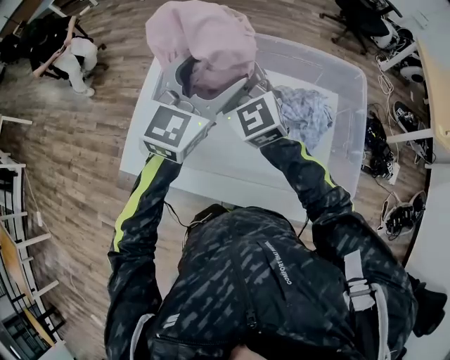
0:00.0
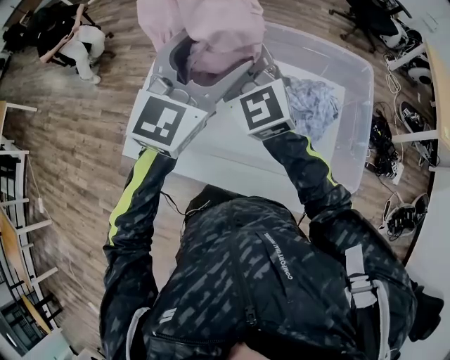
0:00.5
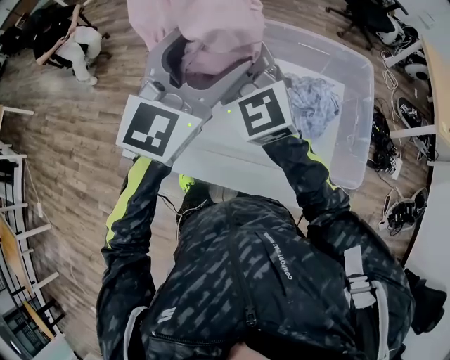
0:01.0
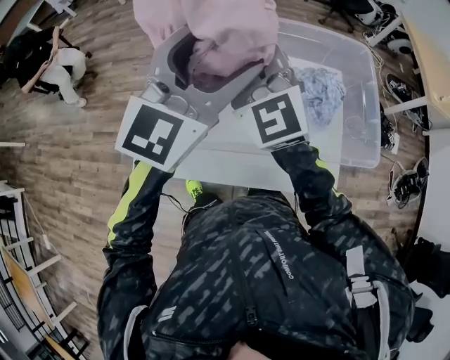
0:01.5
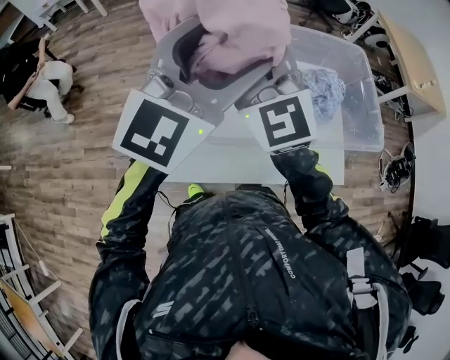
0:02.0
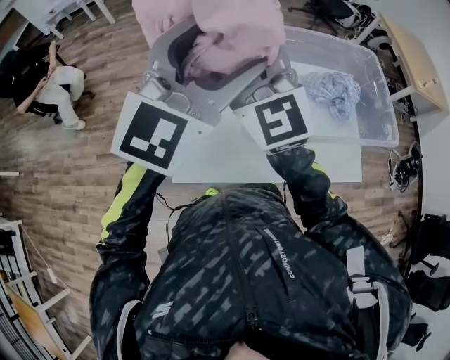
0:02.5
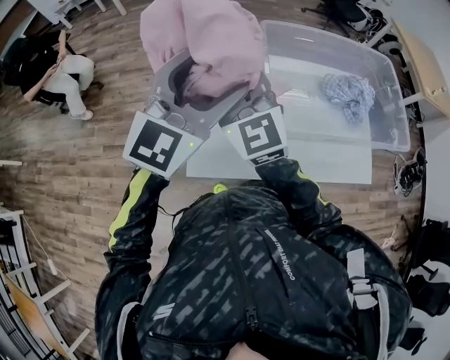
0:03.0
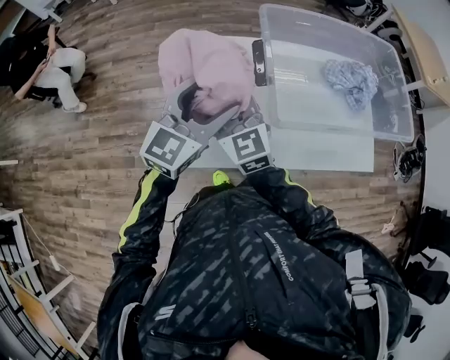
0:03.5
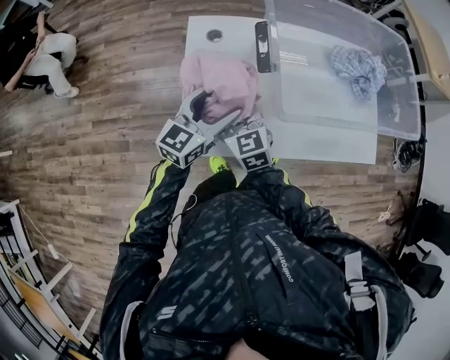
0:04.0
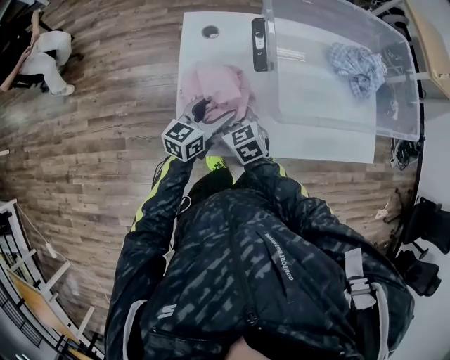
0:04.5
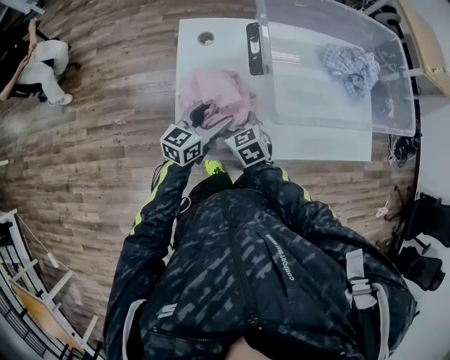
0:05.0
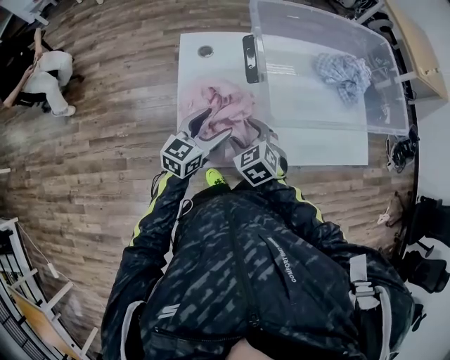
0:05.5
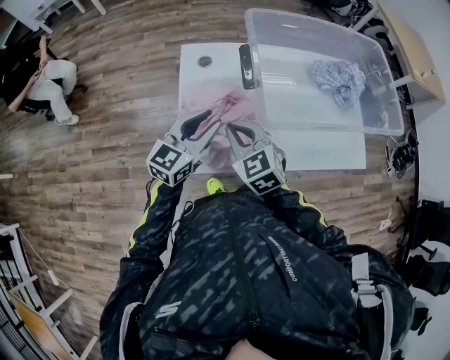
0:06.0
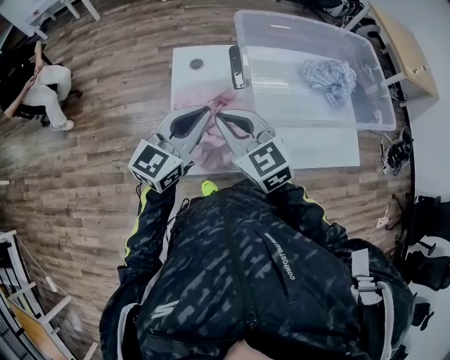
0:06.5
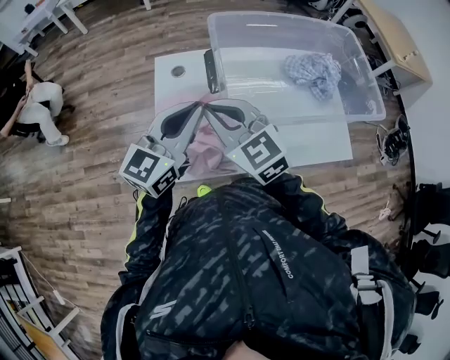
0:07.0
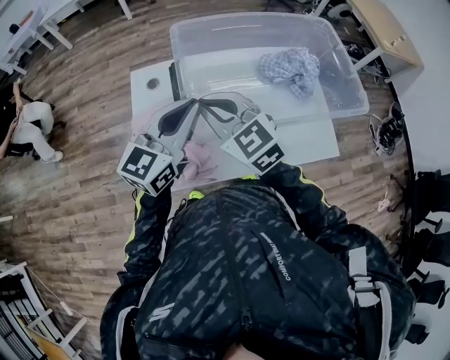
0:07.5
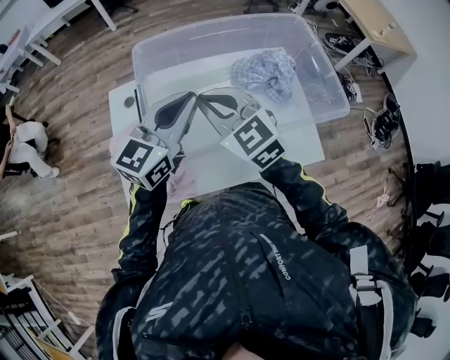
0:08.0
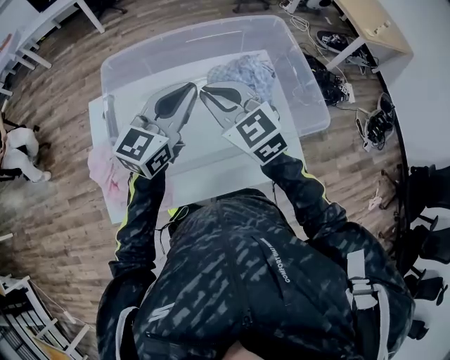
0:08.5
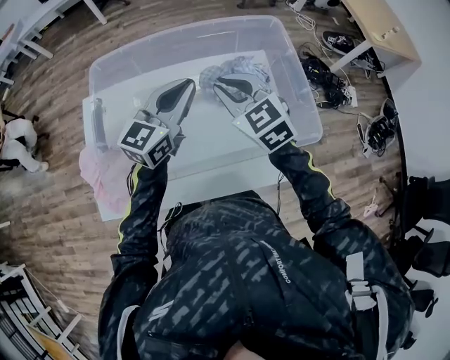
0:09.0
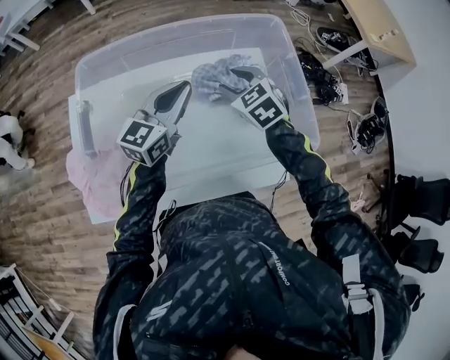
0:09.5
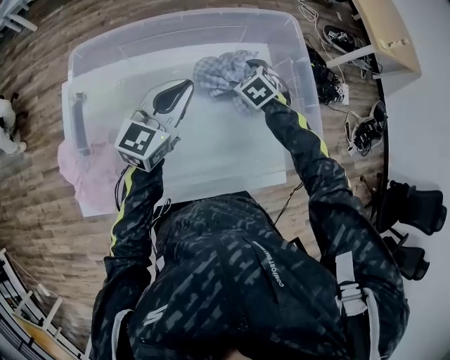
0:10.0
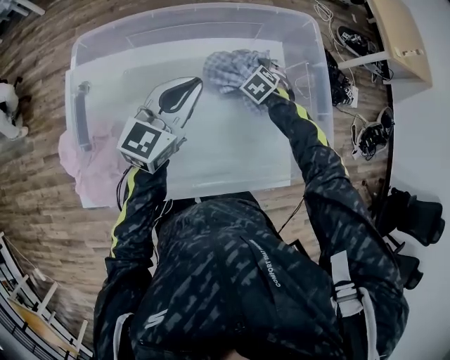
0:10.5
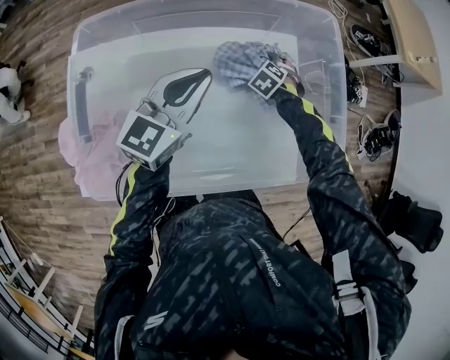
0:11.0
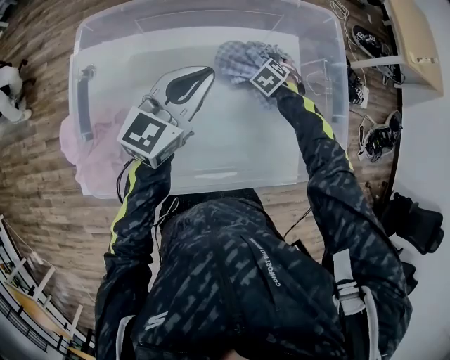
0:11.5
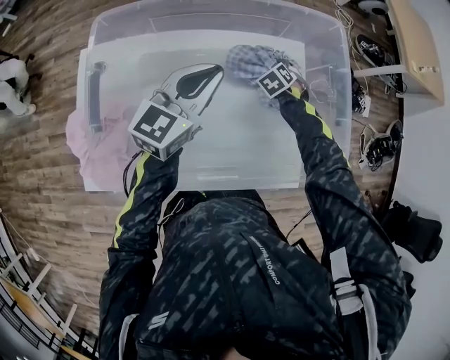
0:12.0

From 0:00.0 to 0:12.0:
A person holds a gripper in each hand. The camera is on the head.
From 0:00.0 to 0:02.0: The grippers both shift to the left, upward and backward by about 20 cm. The left gripper rotates about 20 degrees.
From 0:02.0 to 0:04.0: The grippers both shift downward and to the left by roughly 35 cm. The left gripper turns by some 30 degrees; the right gripper turns by about 40 degrees.
From 0:04.0 to 0:06.0: The left gripper moves roughly 10 cm downward and comes back, and closes up. Meanwhile the right gripper travels upward by about 5 cm.
From 0:06.0 to 0:08.0: The right gripper goes roughly 30 cm to the right, upward and forward; the left gripper shifts roughly 30 cm to the right and upward.
From 0:08.0 to 0:10.0: The left gripper moves forward, to the right and downward, some 25 cm. The right gripper moves downward, to the right and forward, some 40 cm, angles its fingers downward, by roughly 40 degrees, and opens.
From 0:10.0 to 0:12.0: The right gripper shifts roughly 10 cm downward, and opens, then closes again.

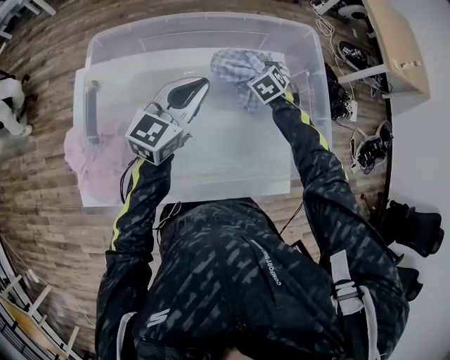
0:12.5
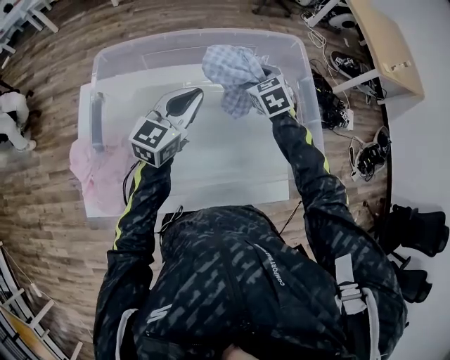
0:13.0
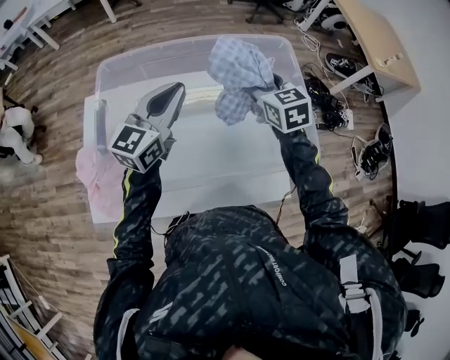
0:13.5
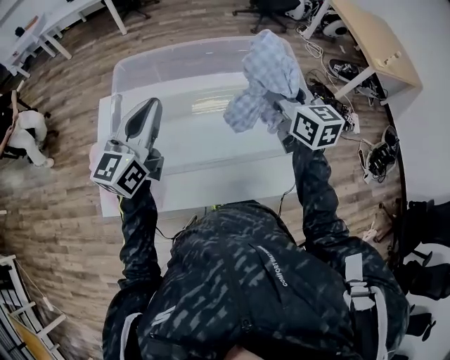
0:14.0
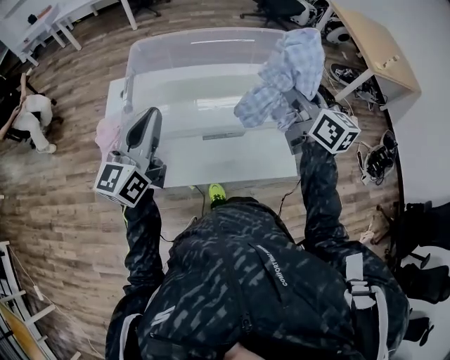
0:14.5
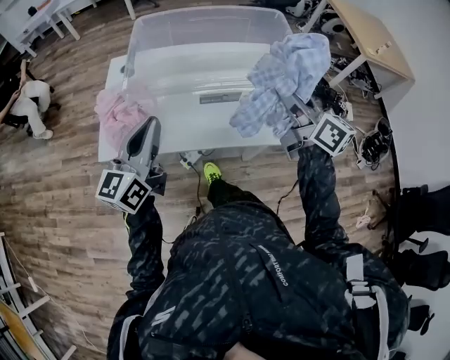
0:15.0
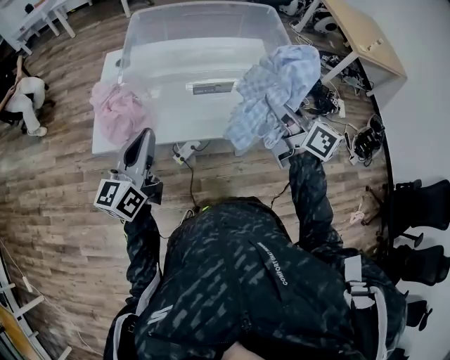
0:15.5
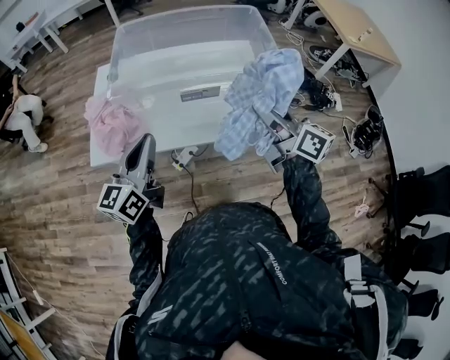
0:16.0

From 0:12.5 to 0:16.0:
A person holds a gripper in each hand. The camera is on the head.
From 0:12.5 to 0:14.5: The left gripper travels backward and upward by some 30 cm, and turns by about 20 degrees. Meanwhile the right gripper shifts some 40 cm upward and backward, and points its fingers roughly 60 degrees further upward.
From 0:14.5 to 0:16.0: Both grippers travel together backward, some 20 cm.

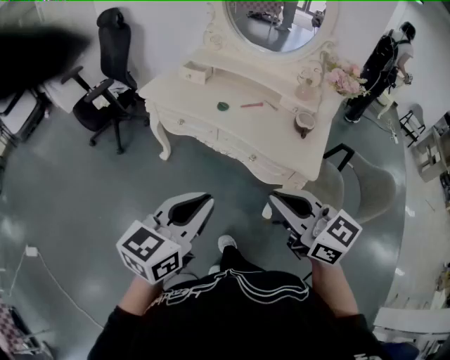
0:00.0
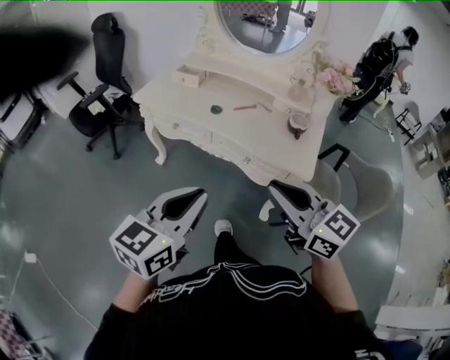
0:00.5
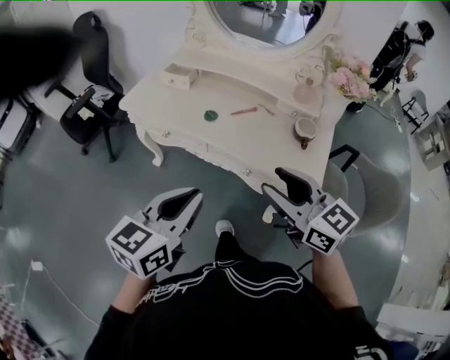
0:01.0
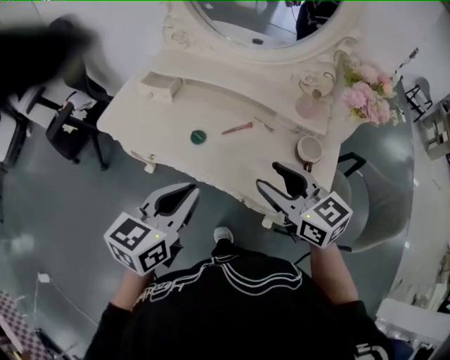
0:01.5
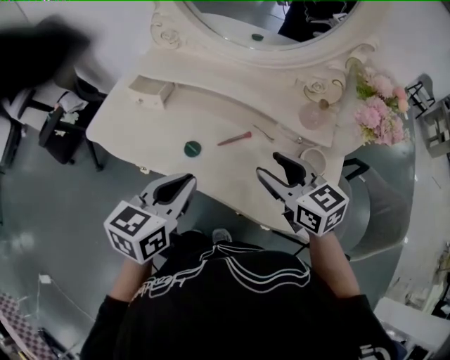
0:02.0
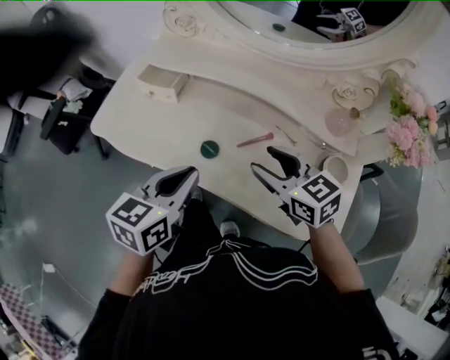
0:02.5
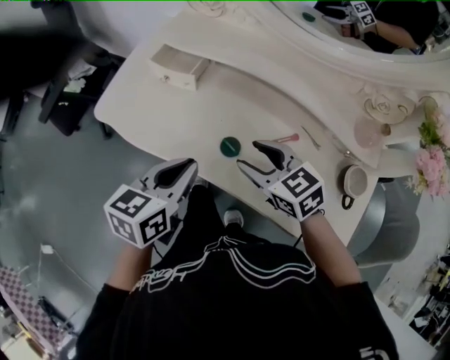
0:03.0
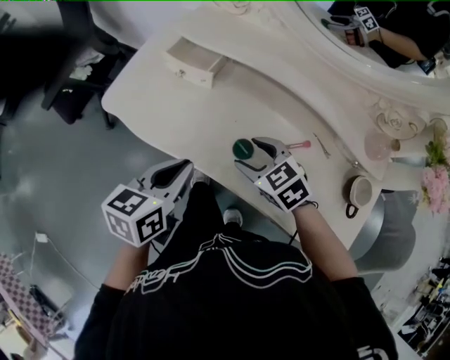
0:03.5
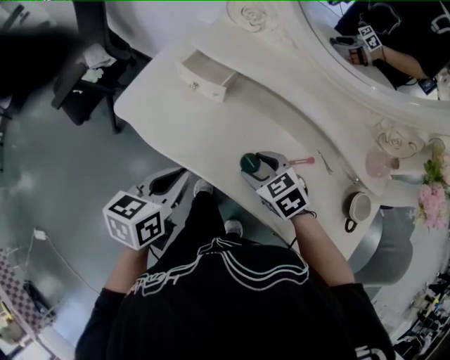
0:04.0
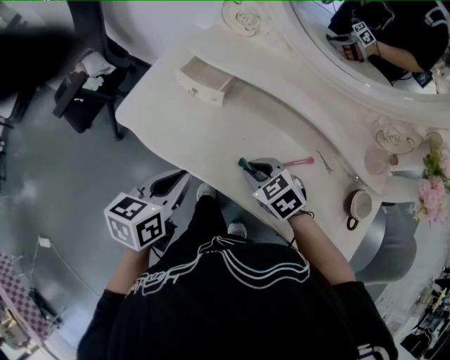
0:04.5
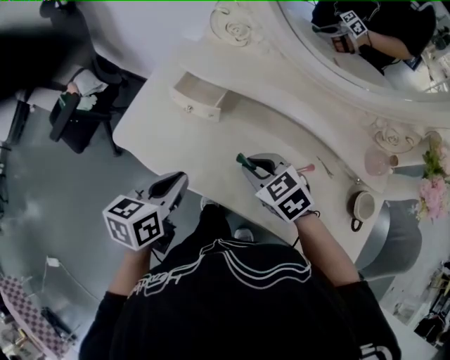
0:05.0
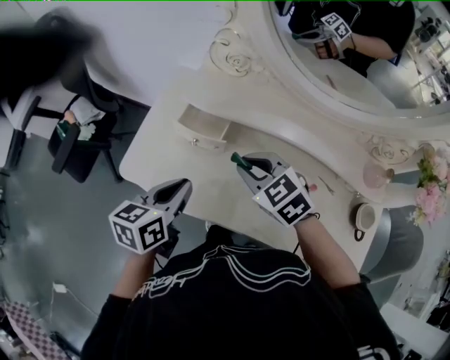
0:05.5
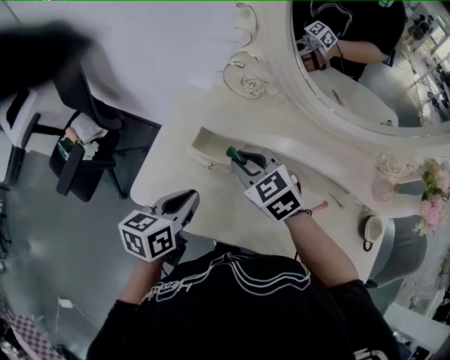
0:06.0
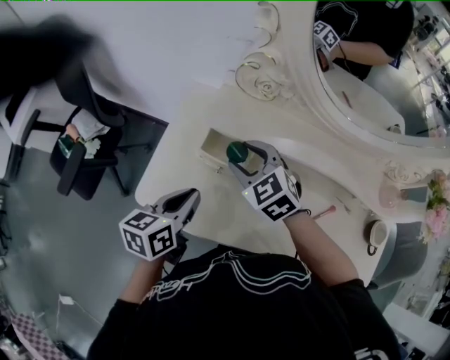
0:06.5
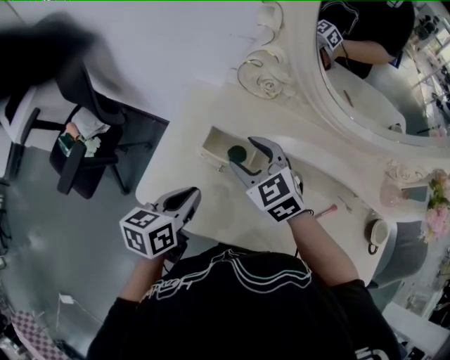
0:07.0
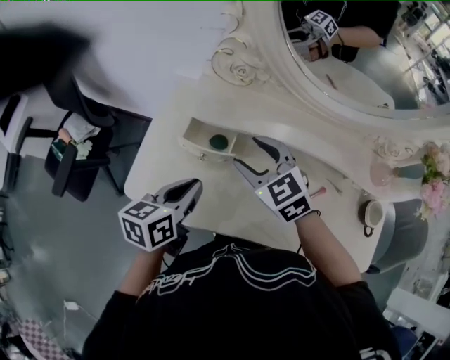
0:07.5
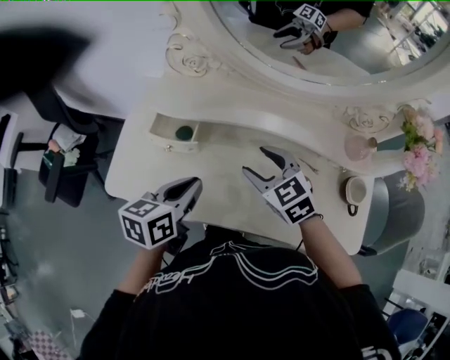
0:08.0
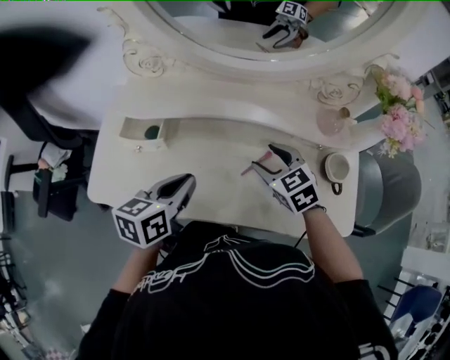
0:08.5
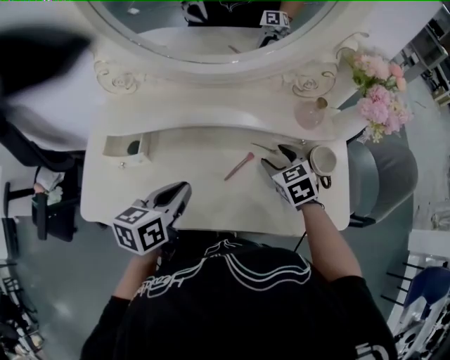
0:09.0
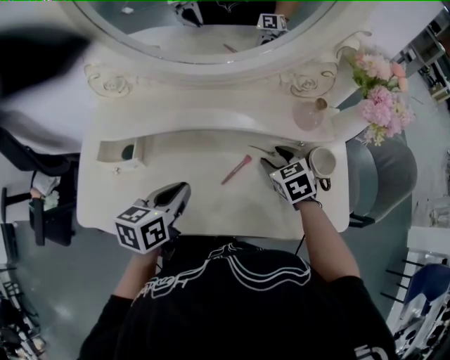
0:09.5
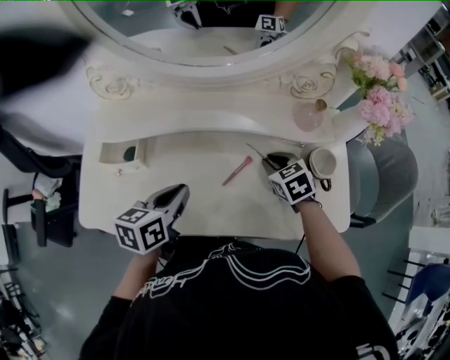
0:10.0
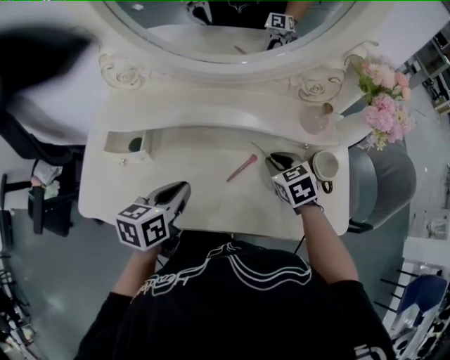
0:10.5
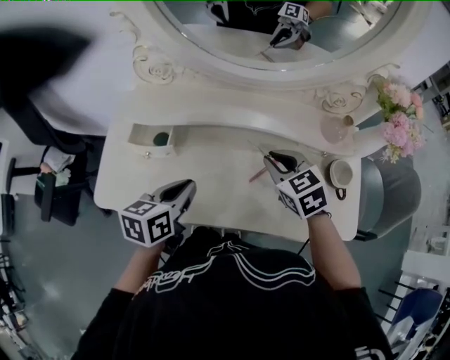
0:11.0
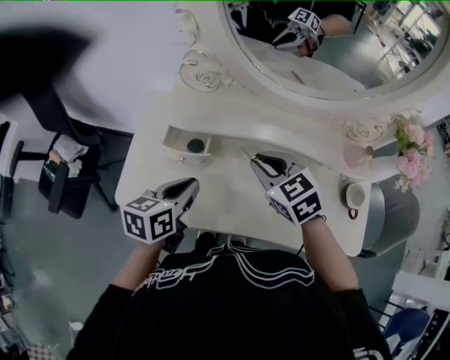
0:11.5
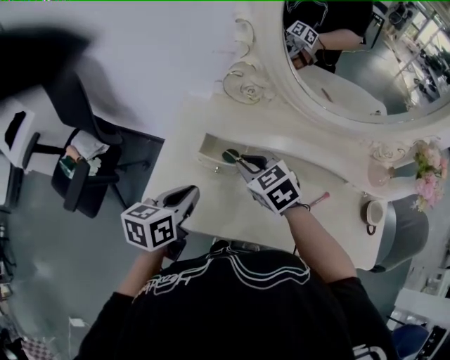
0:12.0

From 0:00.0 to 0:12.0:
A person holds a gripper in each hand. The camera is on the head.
From 0:00.0 to 0:02.0: Both grippers are carried forward, some 40 cm. The right gripper changes its angle by roughly 20 degrees, and opens.
From 0:02.0 to 0:04.0: Both grippers travel together to the left, downward and forward, roughly 25 cm. The right gripper turns by approximately 40 degrees.
From 0:04.0 to 0:06.0: The right gripper shifts approximately 25 cm forward, upward and to the left, and closes; the left gripper travels forward by some 15 cm.
From 0:06.0 to 0:08.0: The left gripper is displaced to the right by some 10 cm; the right gripper travels to the right and backward by some 20 cm, and opens up.
From 0:08.0 to 0:10.0: The right gripper travels to the right and downward by about 25 cm, turns by some 30 degrees, and closes its fingers. The left gripper heads to the right, covering some 10 cm.
From 0:10.0 to 0:12.0: The right gripper travels to the left by approximately 40 cm, and changes its angle by some 30 degrees; the left gripper is displaced to the left by some 25 cm.
